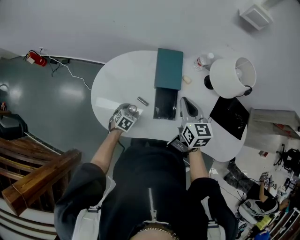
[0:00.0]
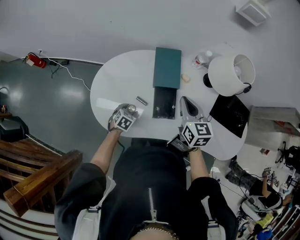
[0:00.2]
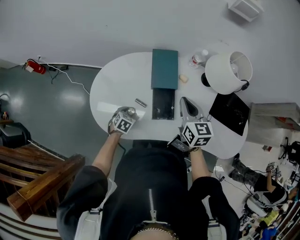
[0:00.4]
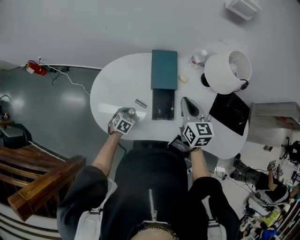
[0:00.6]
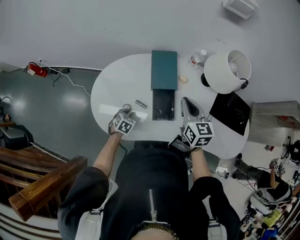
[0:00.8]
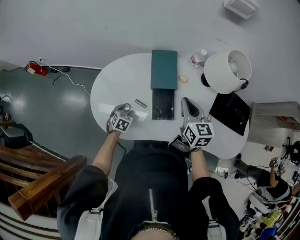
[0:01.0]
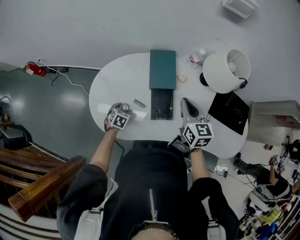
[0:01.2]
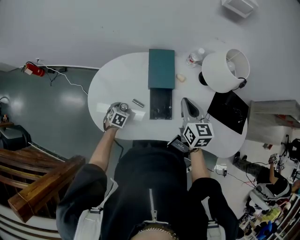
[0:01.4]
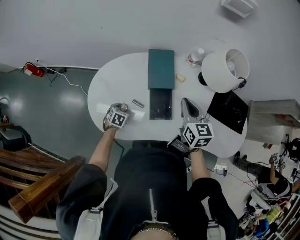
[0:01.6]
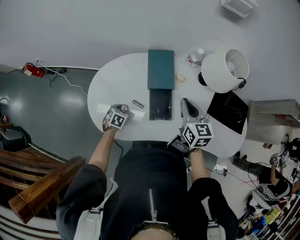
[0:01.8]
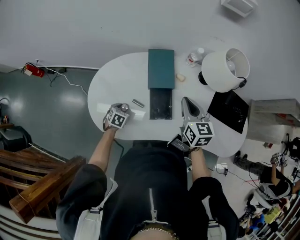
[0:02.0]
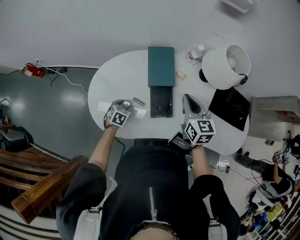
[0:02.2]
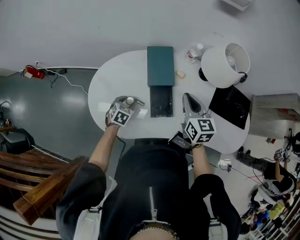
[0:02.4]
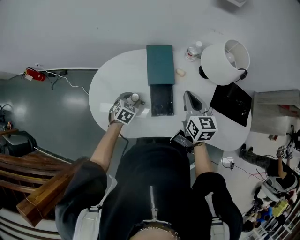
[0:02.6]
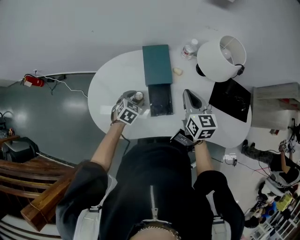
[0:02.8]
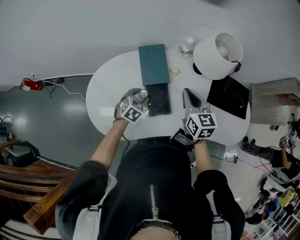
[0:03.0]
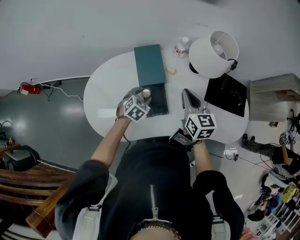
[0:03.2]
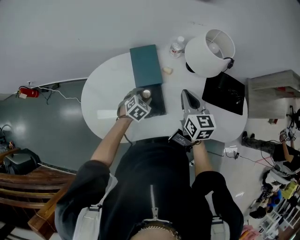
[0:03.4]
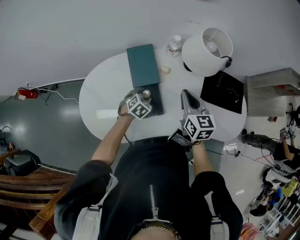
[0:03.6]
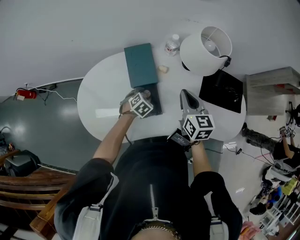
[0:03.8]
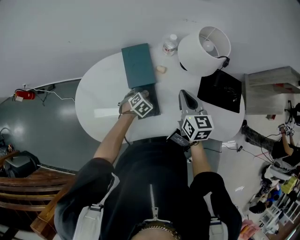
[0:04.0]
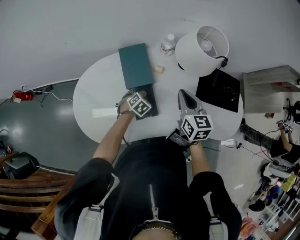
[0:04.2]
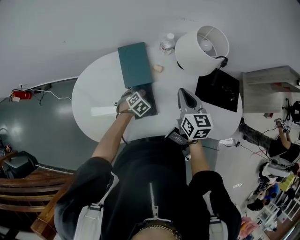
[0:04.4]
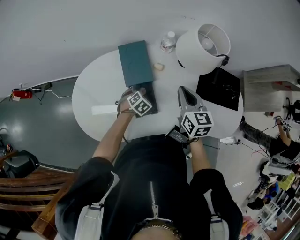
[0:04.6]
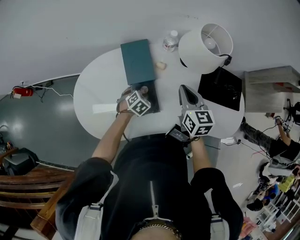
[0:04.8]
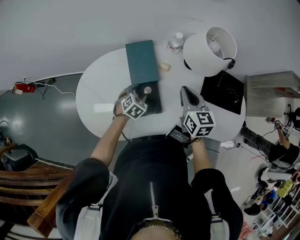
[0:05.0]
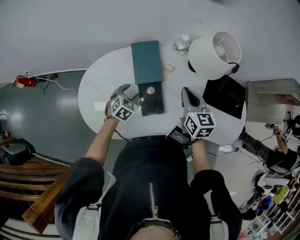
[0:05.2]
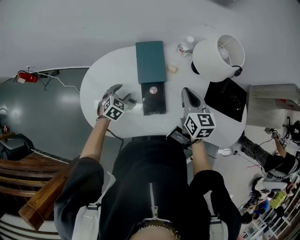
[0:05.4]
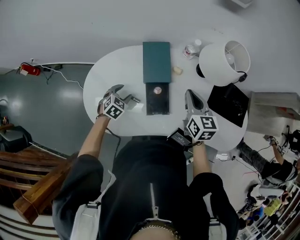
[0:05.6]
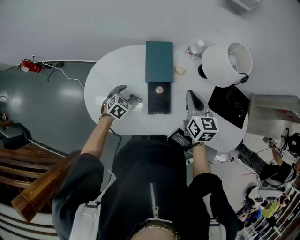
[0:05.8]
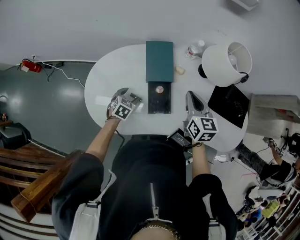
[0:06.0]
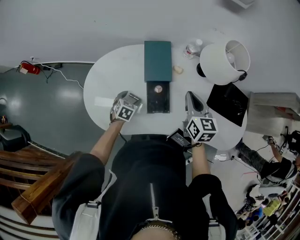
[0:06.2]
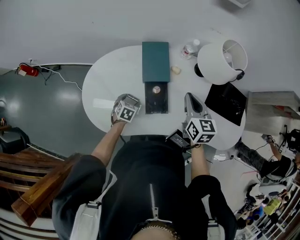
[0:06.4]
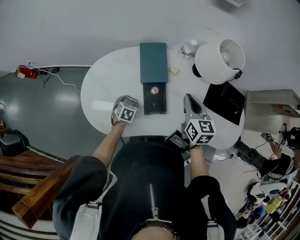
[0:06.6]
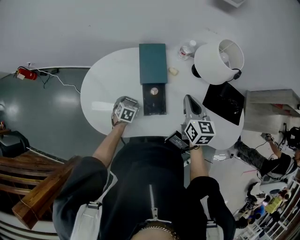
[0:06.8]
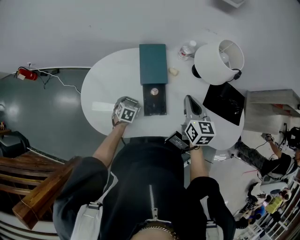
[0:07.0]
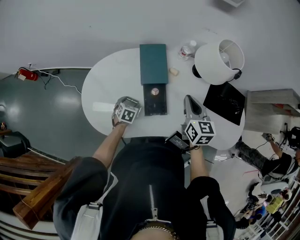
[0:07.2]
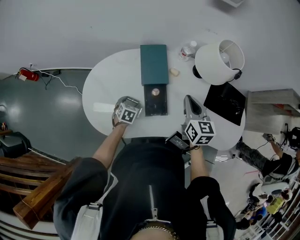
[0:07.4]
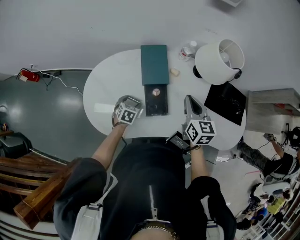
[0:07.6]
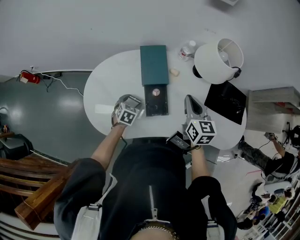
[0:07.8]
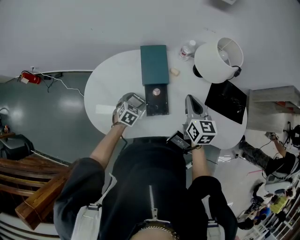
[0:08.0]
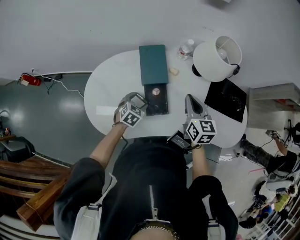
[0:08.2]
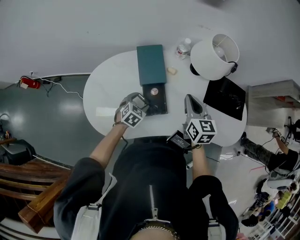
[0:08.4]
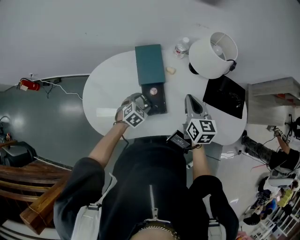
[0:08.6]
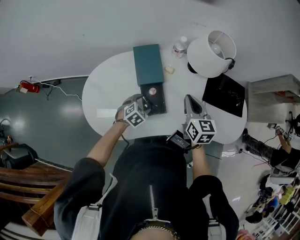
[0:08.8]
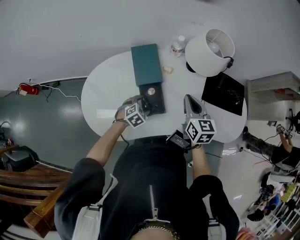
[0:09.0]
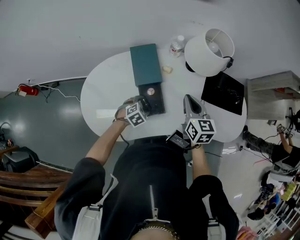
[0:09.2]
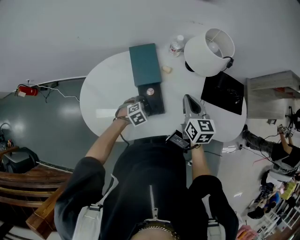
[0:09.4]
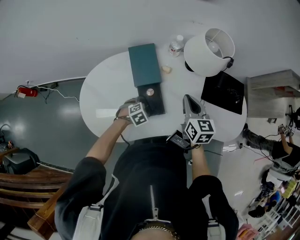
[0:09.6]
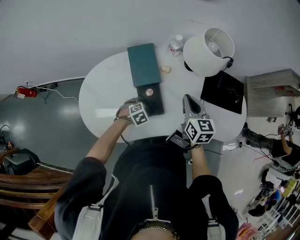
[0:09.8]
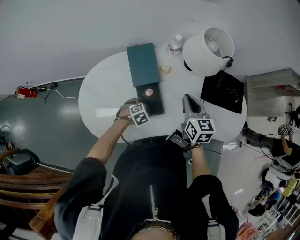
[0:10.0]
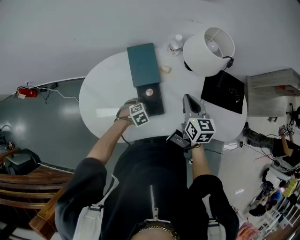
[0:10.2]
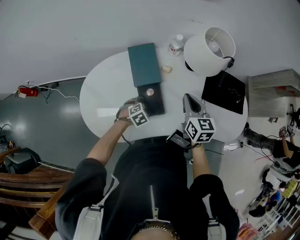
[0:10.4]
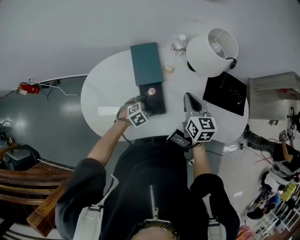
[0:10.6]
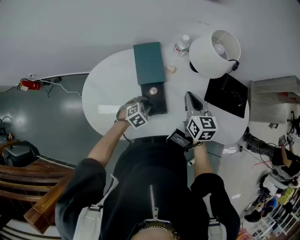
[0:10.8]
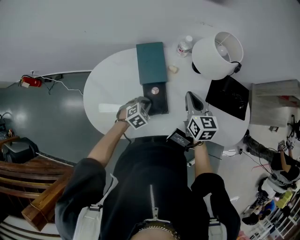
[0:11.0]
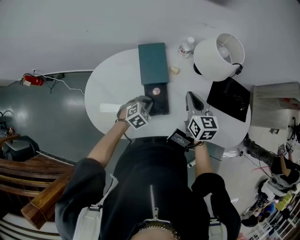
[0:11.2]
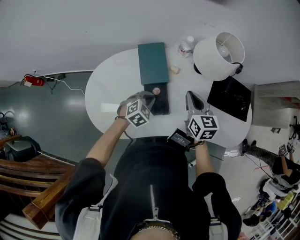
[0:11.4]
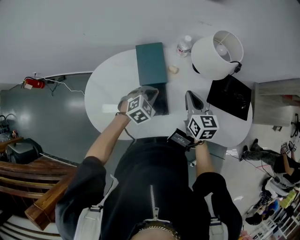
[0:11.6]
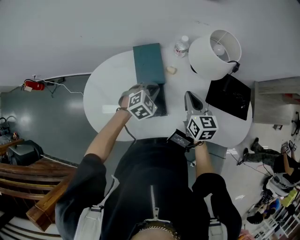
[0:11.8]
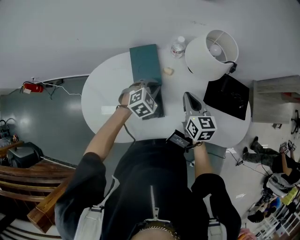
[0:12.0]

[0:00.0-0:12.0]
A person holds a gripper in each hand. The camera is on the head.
0.0 to 1.6 s: The left gripper closes and opens again.
1.6 to 3.0 s: The left gripper travels to the right, upward and forward by approximately 20 cm, and swivels roughly 30 degrees.
3.0 to 4.4 s: The left gripper heads downward and to the right, covering roughly 10 cm, while the right gripper goes about 5 cm to the right.
4.4 to 6.0 s: The left gripper goes approximately 15 cm to the left and backward, and swivels some 30 degrees. The right gripper goes some 5 cm to the left.
6.0 to 7.6 s: There are only small adjustments of the grippers.
7.6 to 9.0 s: The left gripper moves to the right, approximately 10 cm, and rotates approximately 40 degrees.
9.0 to 10.4 s: There are only small adjustments of the grippers.
10.4 to 12.0 s: The left gripper travels upward and forward by approximately 20 cm, turns by some 20 degrees, and closes up.

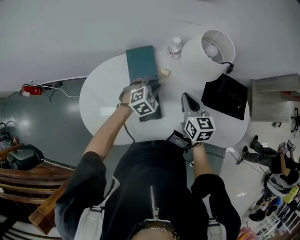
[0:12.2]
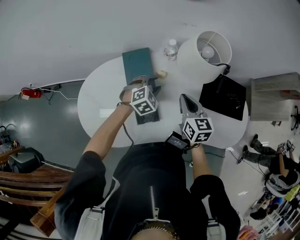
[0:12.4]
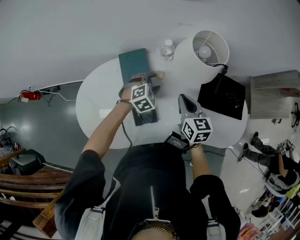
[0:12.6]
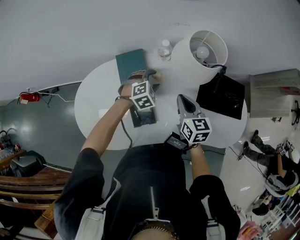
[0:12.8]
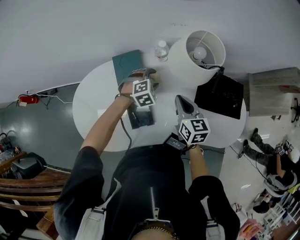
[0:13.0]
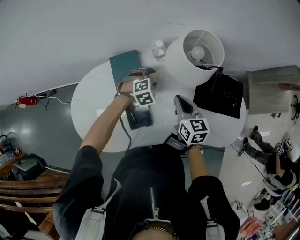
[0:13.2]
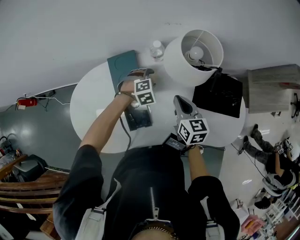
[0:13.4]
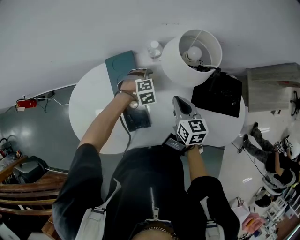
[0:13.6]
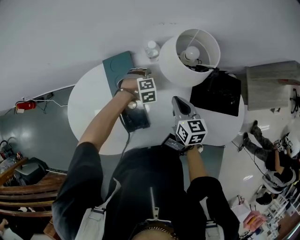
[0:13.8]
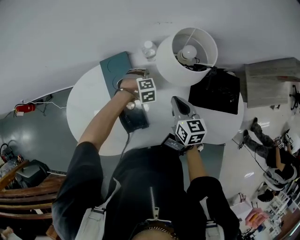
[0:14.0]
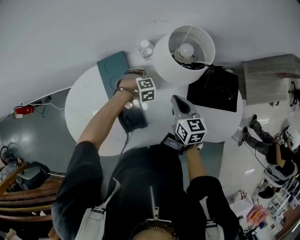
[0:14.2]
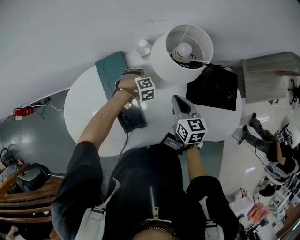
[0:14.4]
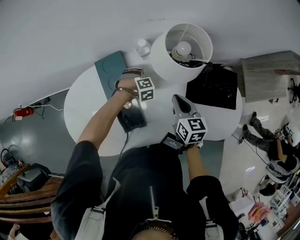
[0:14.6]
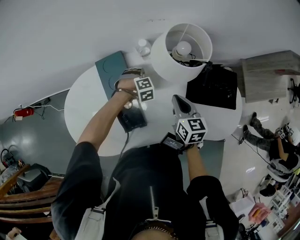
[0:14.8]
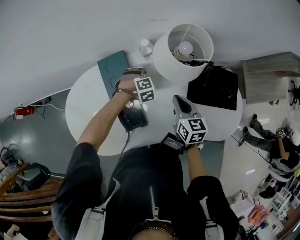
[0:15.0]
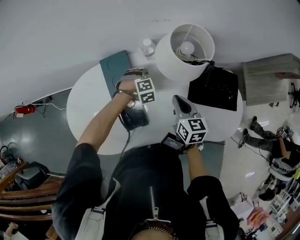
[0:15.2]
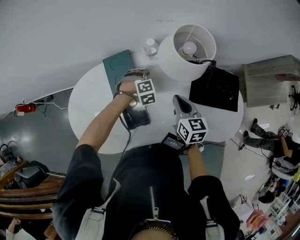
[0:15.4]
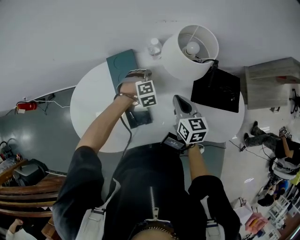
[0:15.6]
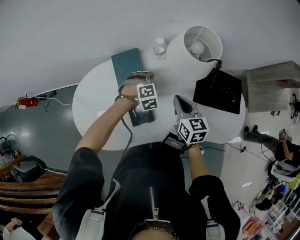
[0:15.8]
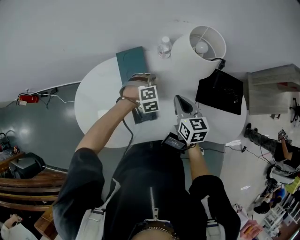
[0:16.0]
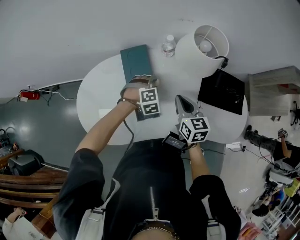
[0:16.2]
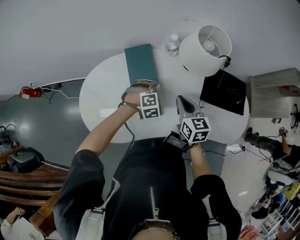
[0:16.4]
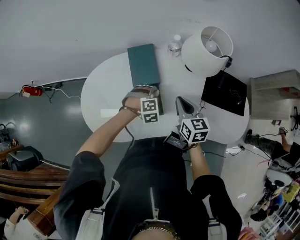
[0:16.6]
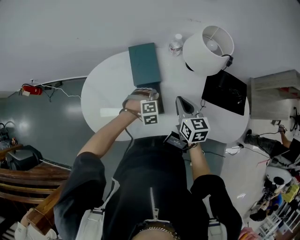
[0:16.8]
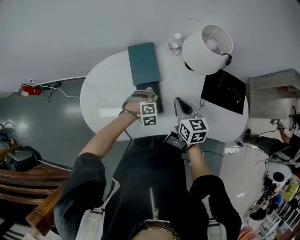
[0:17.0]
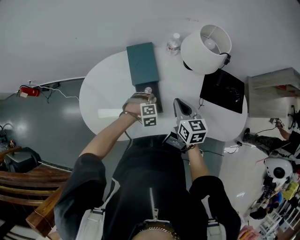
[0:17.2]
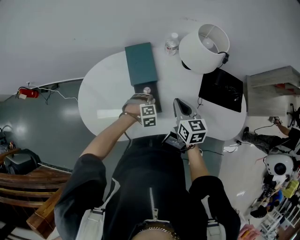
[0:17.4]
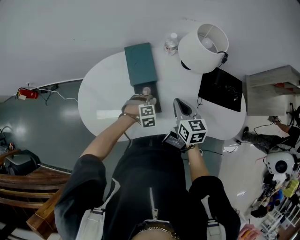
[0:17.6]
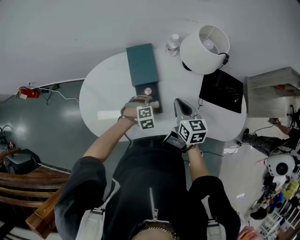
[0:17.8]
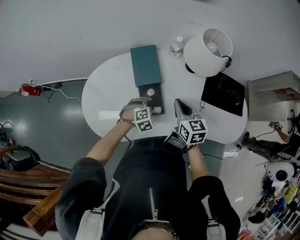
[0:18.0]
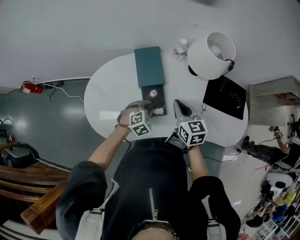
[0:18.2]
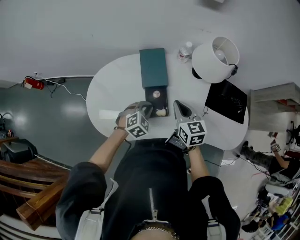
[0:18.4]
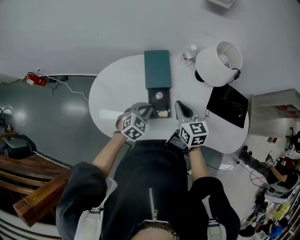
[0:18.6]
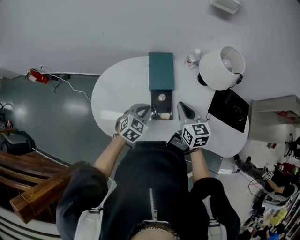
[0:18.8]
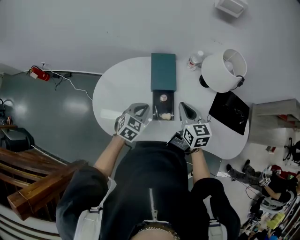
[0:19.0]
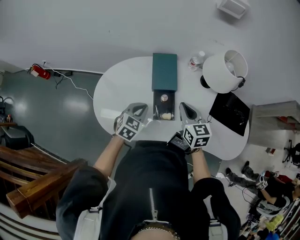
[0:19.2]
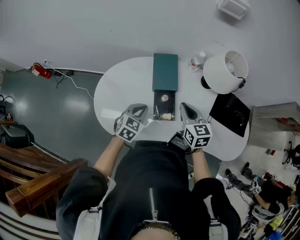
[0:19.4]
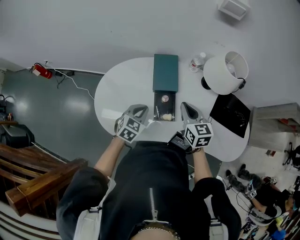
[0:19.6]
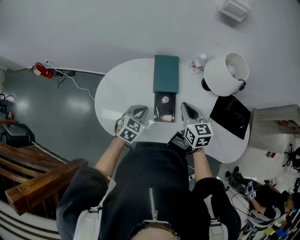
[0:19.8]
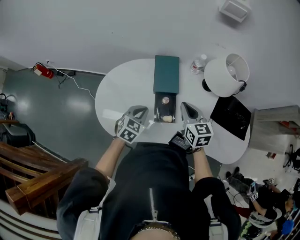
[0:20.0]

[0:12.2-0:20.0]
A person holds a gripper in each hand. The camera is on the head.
12.2 to 13.8 s: The left gripper moves downward and forward, roughly 15 cm, turns by about 30 degrees, and opens, while the right gripper ends up approximately 5 cm from where it was.
13.8 to 15.4 s: The grippers move only a little.
15.4 to 16.8 s: The right gripper heads to the left and backward, covering approximately 10 cm; the left gripper moves backward and to the left, about 15 cm.
16.8 to 18.4 s: The left gripper is displaced upward and to the left by roughly 10 cm, changes its angle by roughly 30 degrees, and closes its fingers; the right gripper ends up some 5 cm from where it was.
18.4 to 20.0 s: The left gripper goes about 5 cm to the left, and changes its angle by approximately 30 degrees.

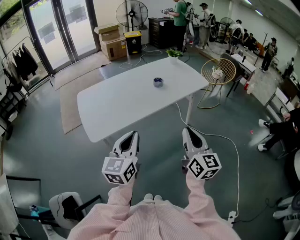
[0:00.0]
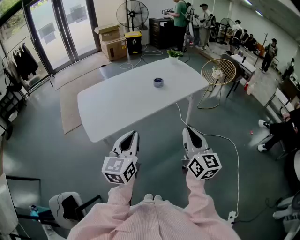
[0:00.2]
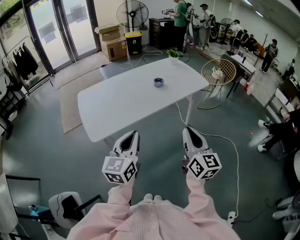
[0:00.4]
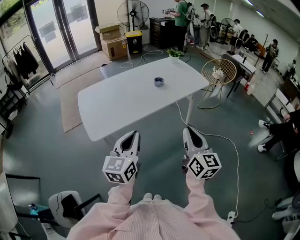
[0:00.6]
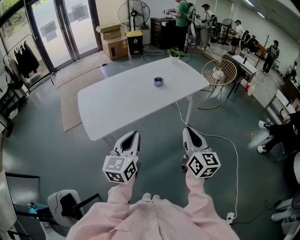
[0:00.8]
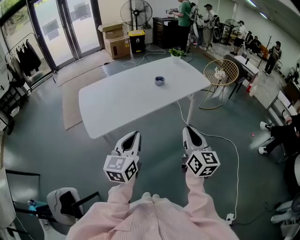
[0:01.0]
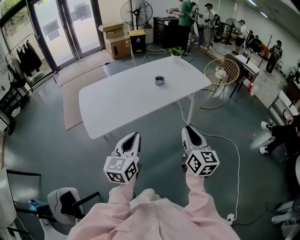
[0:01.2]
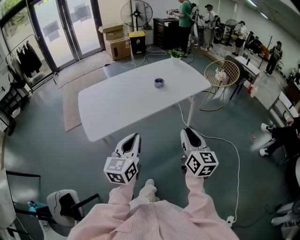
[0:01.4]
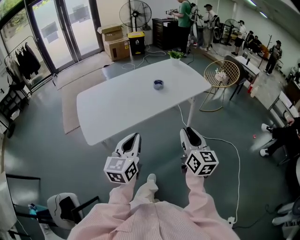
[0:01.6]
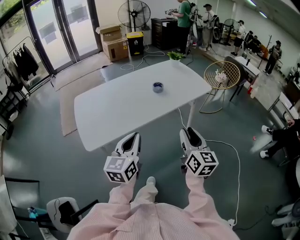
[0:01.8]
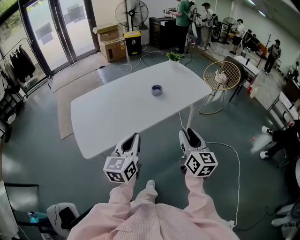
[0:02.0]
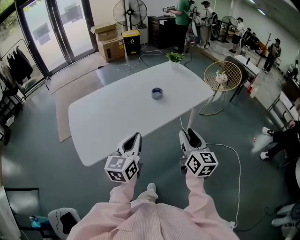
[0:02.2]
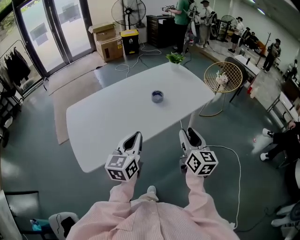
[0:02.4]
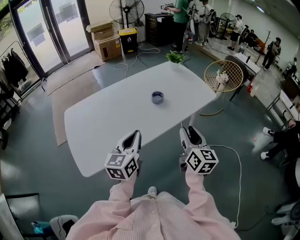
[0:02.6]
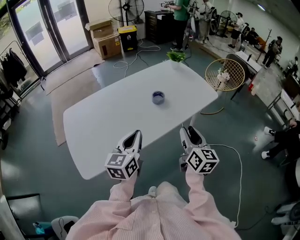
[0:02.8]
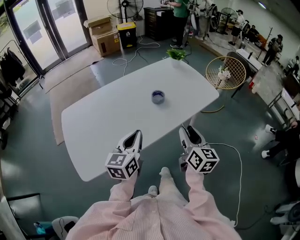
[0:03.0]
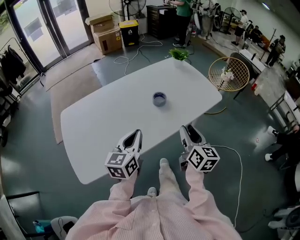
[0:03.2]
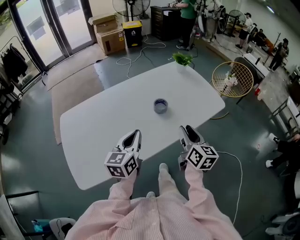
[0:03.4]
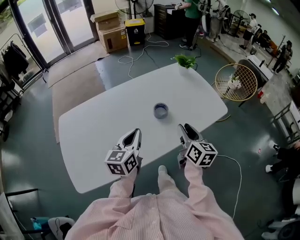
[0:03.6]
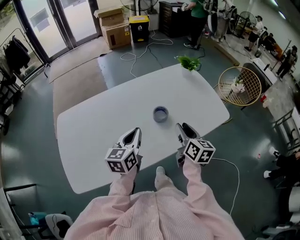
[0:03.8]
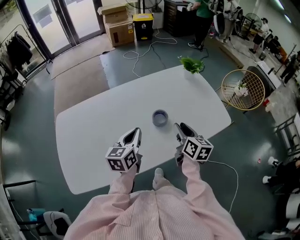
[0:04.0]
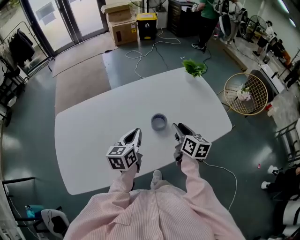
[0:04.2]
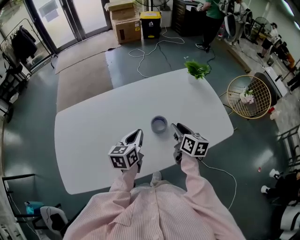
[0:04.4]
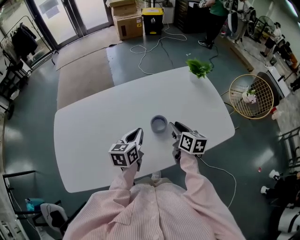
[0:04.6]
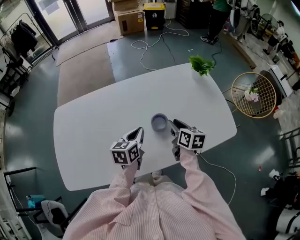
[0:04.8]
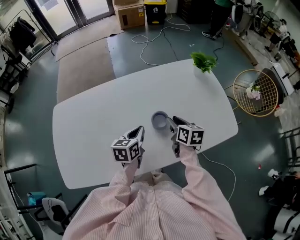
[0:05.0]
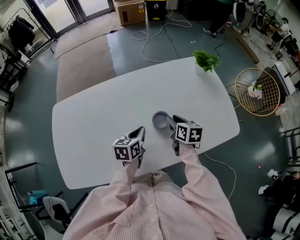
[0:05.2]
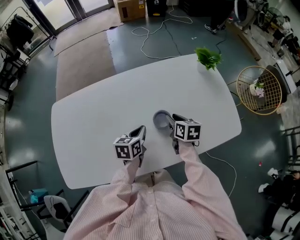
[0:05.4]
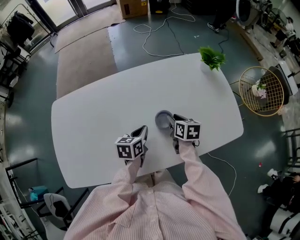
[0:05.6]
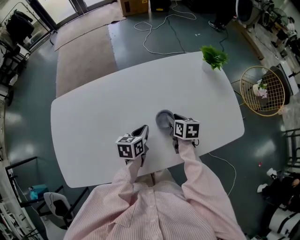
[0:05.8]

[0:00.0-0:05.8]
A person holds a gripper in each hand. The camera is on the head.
0.0 to 1.4 s: The right gripper ends up roughly 5 cm from where it was.
1.4 to 2.8 s: Both grippers travel together forward, roughly 40 cm.
2.8 to 4.4 s: The pair of grippers is taken forward, roughly 70 cm. The left gripper swivels about 20 degrees. Meanwhile the right gripper turns by some 30 degrees.
4.4 to 5.8 s: The two grippers go some 15 cm downward and forward. The right gripper swivels about 20 degrees.
